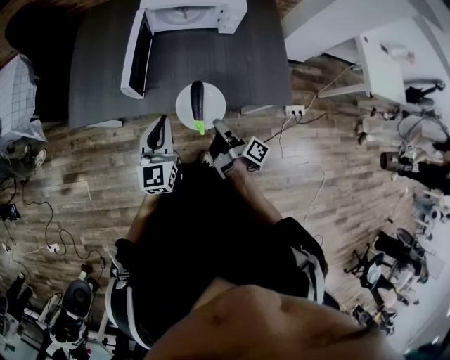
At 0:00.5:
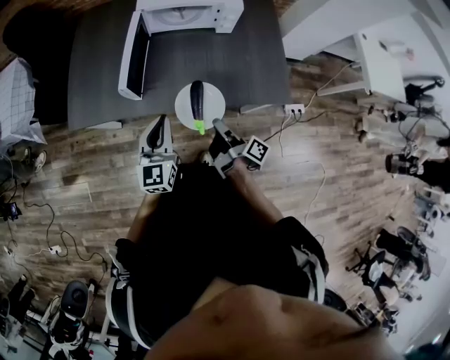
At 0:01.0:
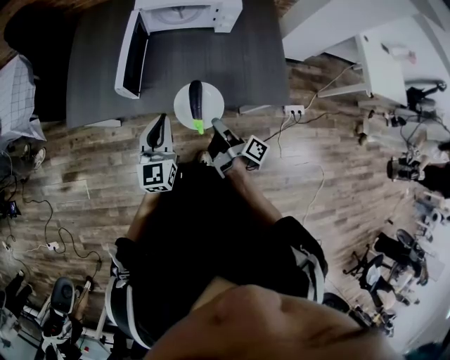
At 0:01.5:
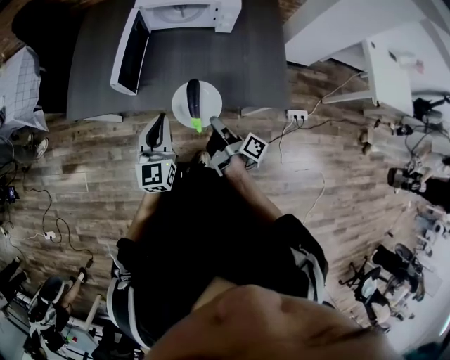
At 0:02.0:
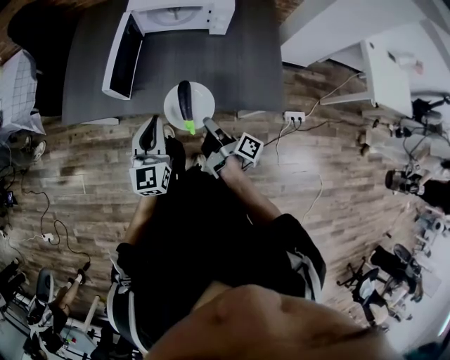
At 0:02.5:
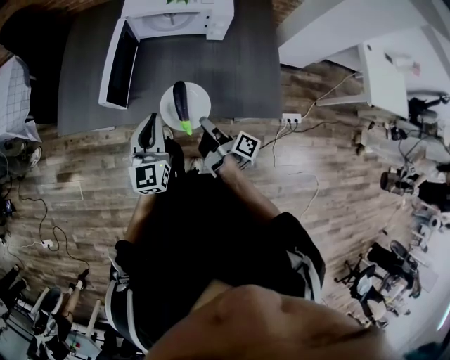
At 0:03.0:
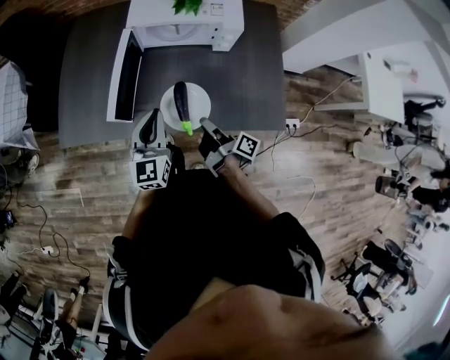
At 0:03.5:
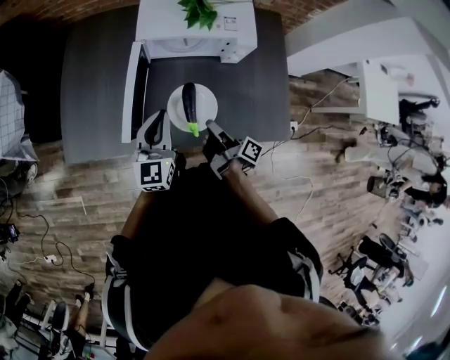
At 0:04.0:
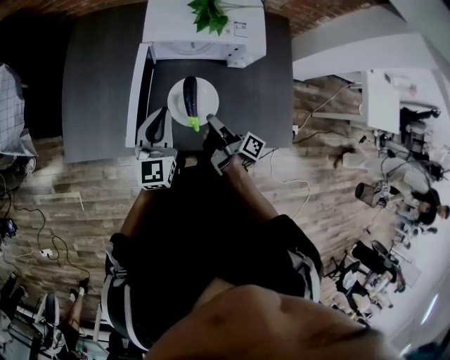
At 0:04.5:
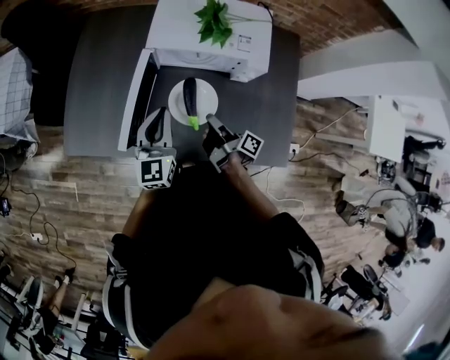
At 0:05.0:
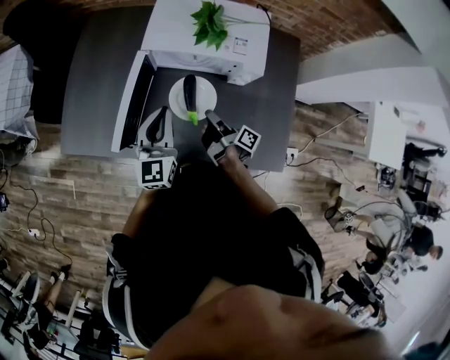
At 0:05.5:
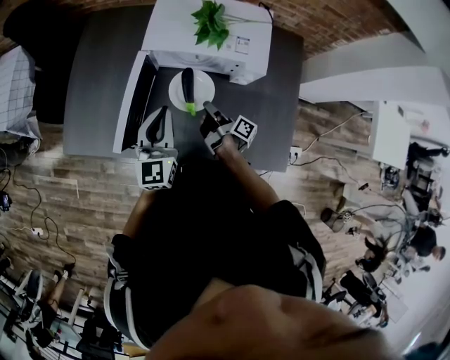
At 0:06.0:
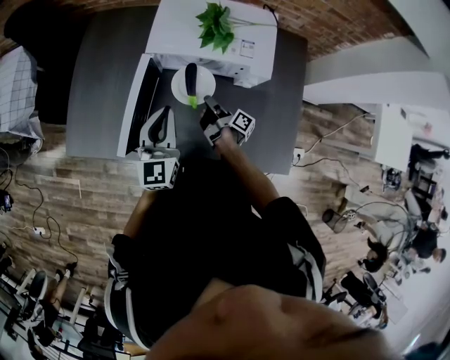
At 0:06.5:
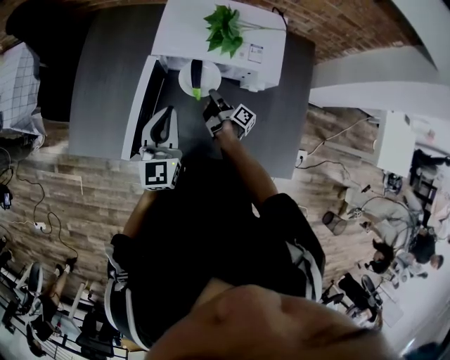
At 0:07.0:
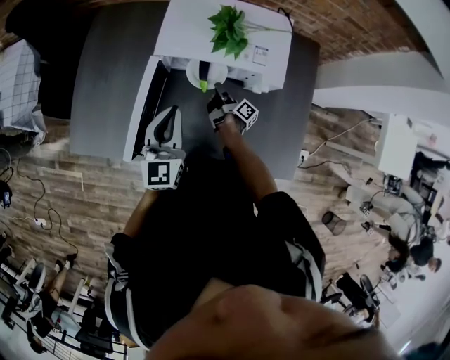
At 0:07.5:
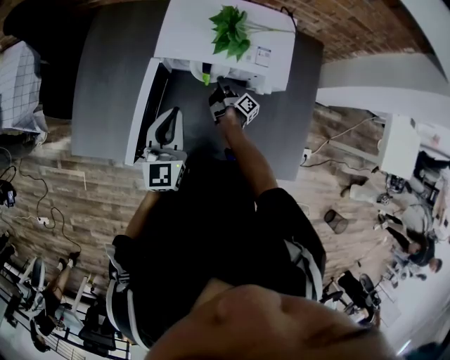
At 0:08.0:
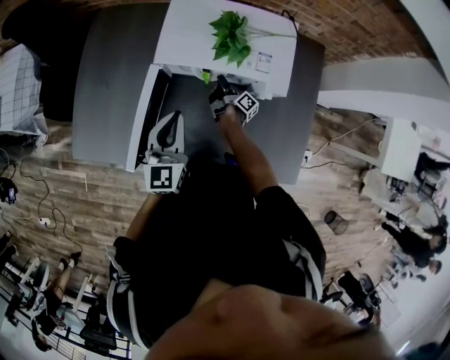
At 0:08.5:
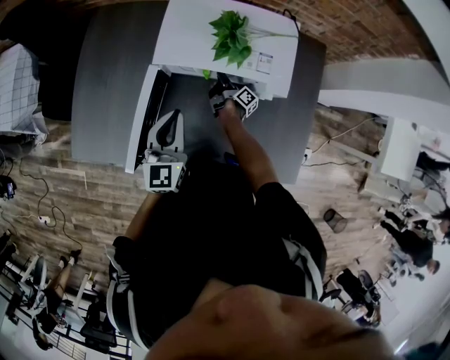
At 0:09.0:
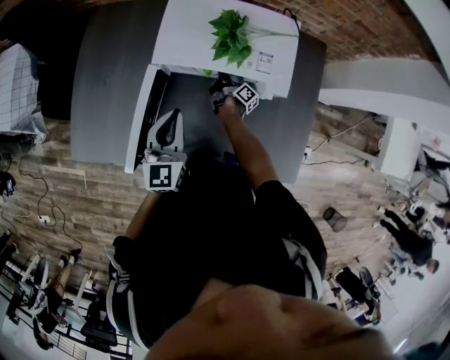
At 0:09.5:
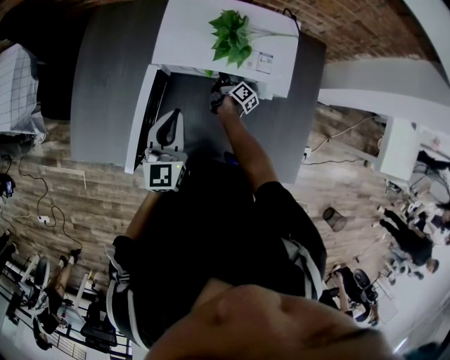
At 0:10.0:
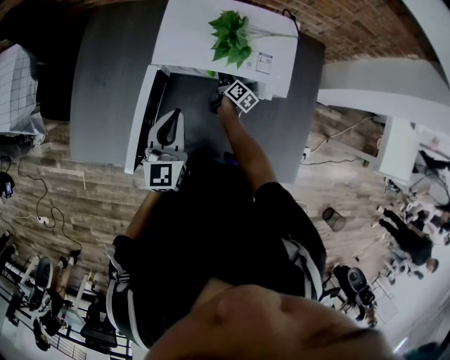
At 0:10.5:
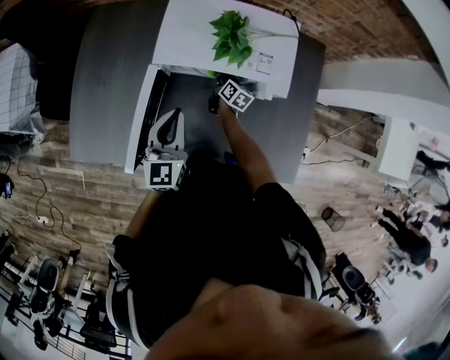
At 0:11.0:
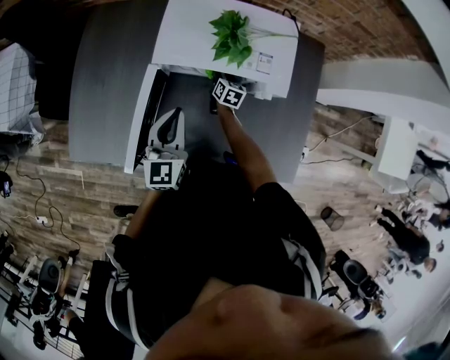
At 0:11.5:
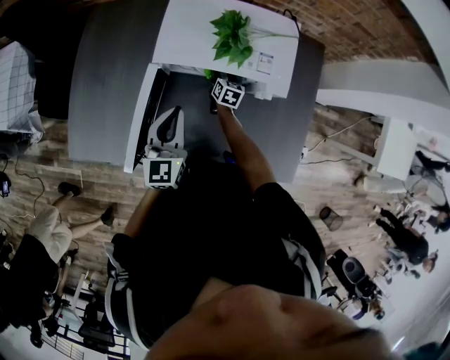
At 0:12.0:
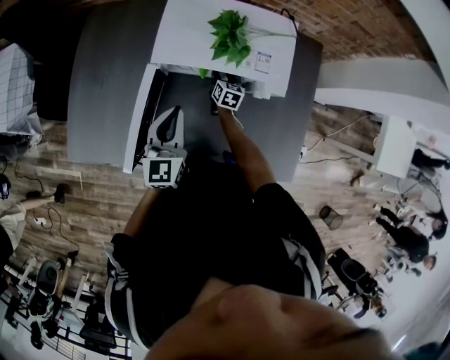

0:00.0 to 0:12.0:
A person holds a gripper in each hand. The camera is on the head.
0:00.0 to 0:02.0: The grippers both shift to the right by approximately 5 cm.
0:02.0 to 0:04.0: Both grippers move forward, about 25 cm.
0:04.0 to 0:06.0: The left gripper shifts by roughly 5 cm. Meanwhile the right gripper goes roughly 15 cm forward and downward.
0:06.0 to 0:08.0: The right gripper moves forward and downward, approximately 15 cm, while the left gripper travels forward by about 5 cm.
0:08.0 to 0:10.0: The right gripper turns by approximately 30 degrees.
0:10.0 to 0:12.0: The right gripper changes its angle by some 40 degrees, and opens up.

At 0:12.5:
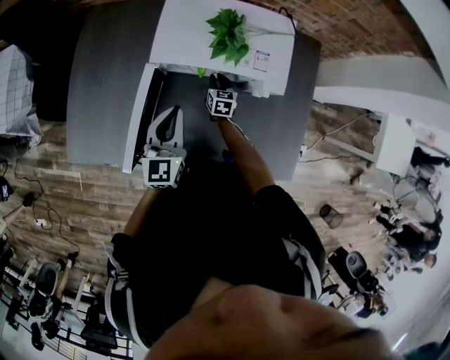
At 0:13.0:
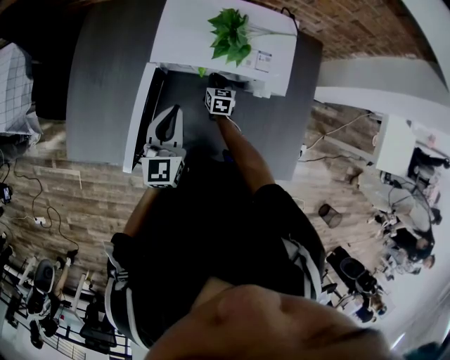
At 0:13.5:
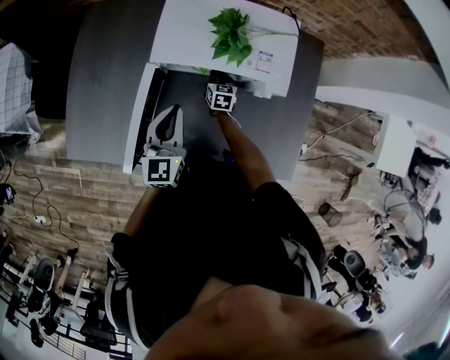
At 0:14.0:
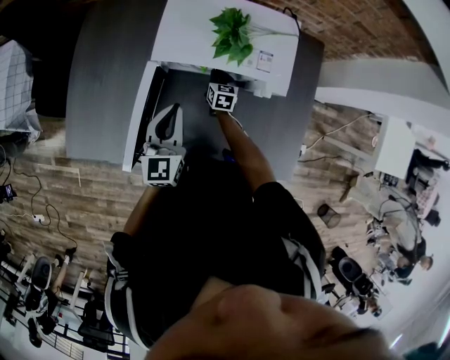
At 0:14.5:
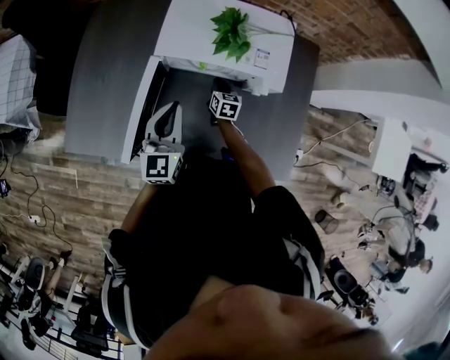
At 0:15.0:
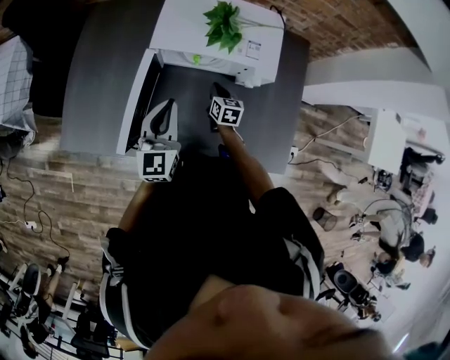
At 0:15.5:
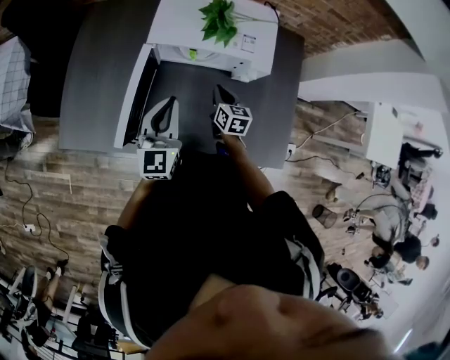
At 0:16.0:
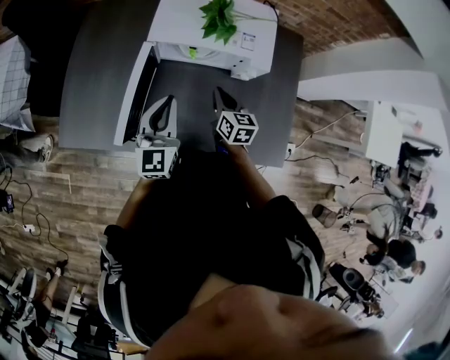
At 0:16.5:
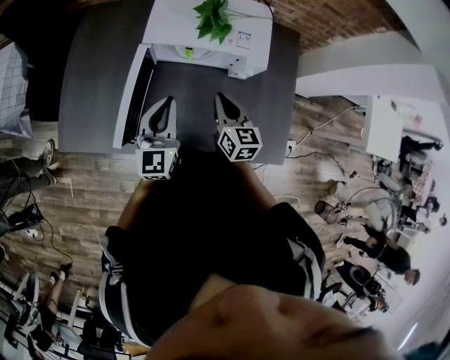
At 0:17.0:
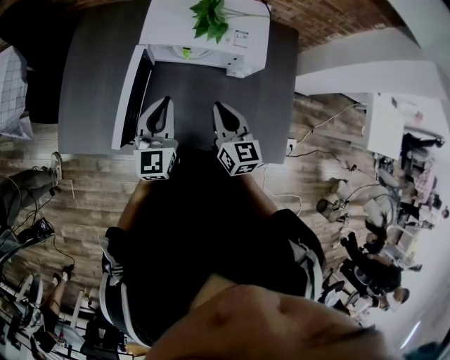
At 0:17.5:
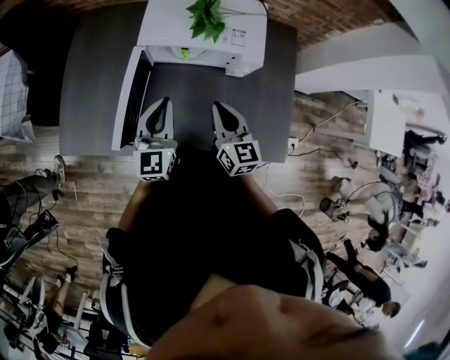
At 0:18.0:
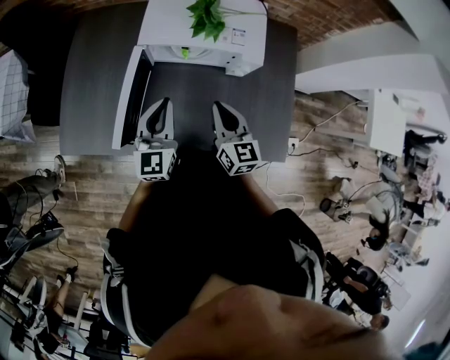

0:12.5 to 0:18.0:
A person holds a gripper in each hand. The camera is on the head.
0:12.5 to 0:14.5: The grippers move only a little.
0:14.5 to 0:16.0: The left gripper moves backward, some 5 cm. Meanwhile the right gripper is displaced upward and backward by approximately 20 cm.
0:16.0 to 0:18.0: The right gripper moves upward and backward, roughly 10 cm.

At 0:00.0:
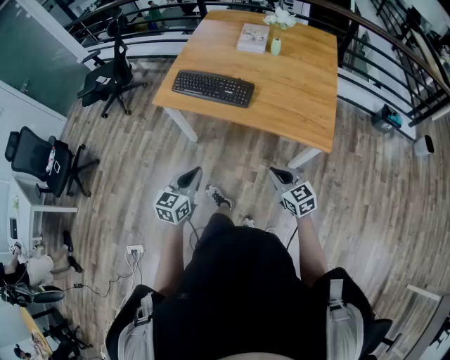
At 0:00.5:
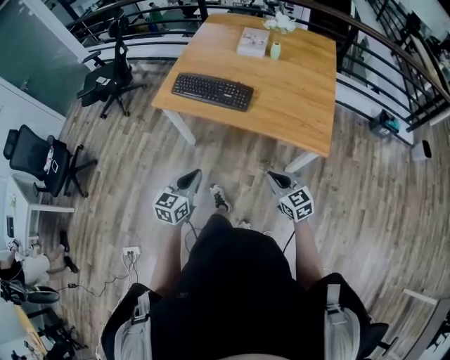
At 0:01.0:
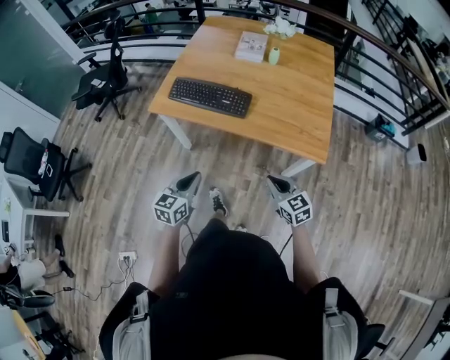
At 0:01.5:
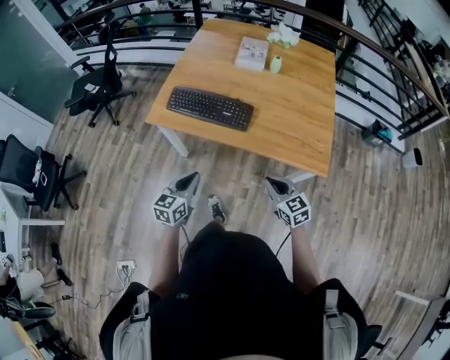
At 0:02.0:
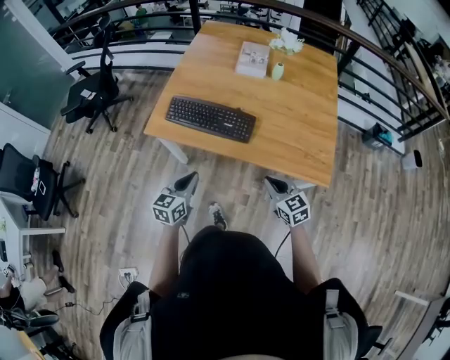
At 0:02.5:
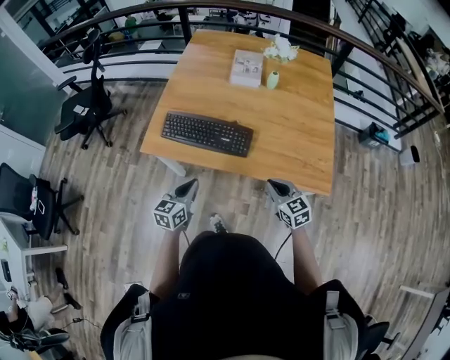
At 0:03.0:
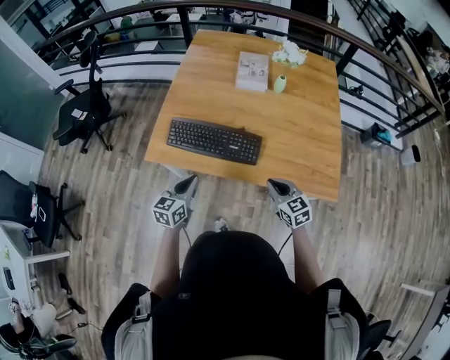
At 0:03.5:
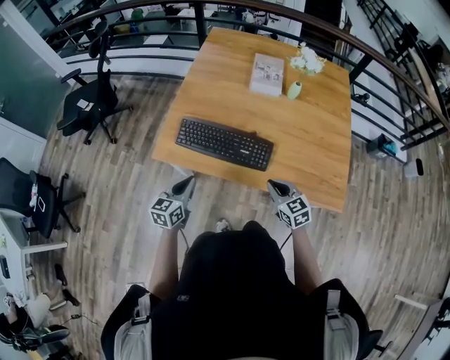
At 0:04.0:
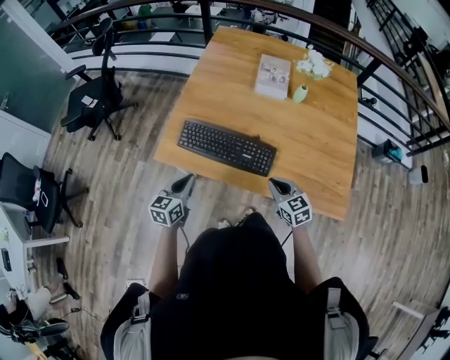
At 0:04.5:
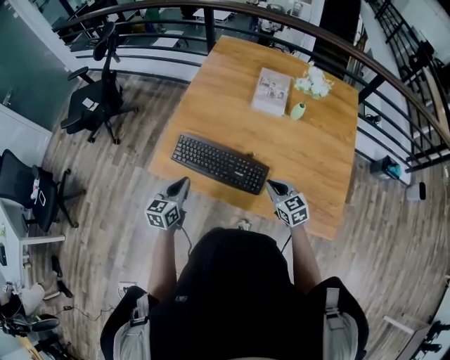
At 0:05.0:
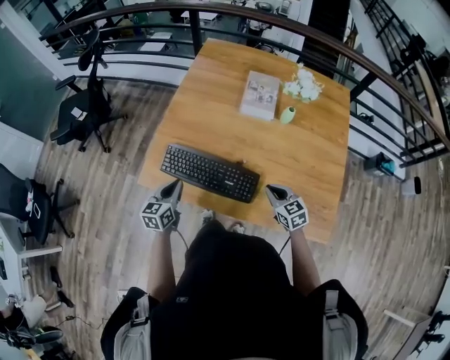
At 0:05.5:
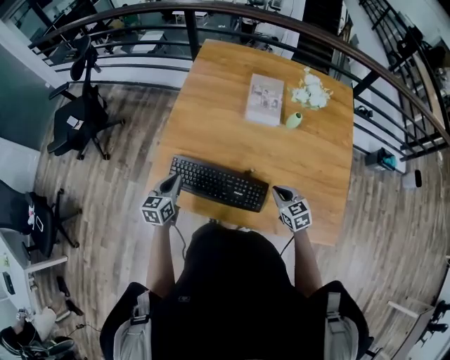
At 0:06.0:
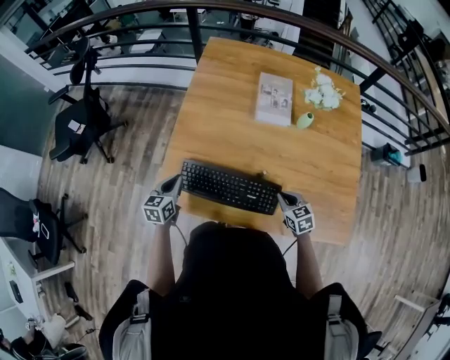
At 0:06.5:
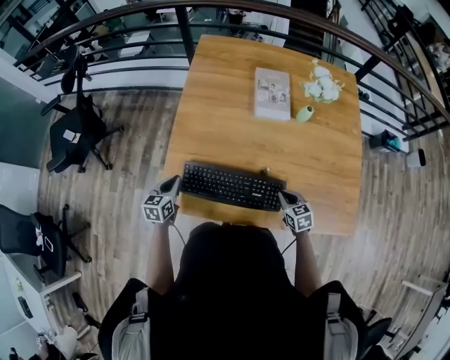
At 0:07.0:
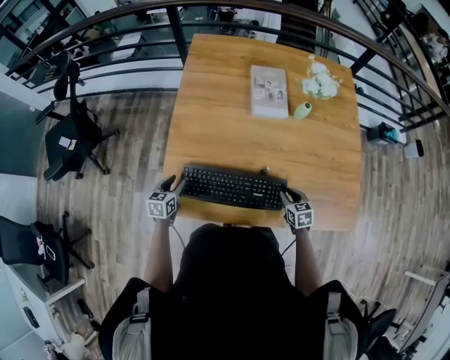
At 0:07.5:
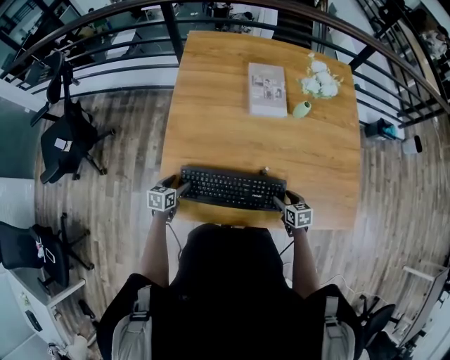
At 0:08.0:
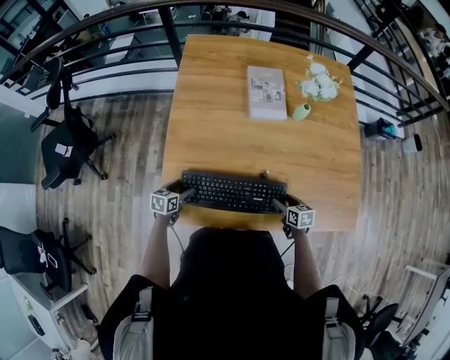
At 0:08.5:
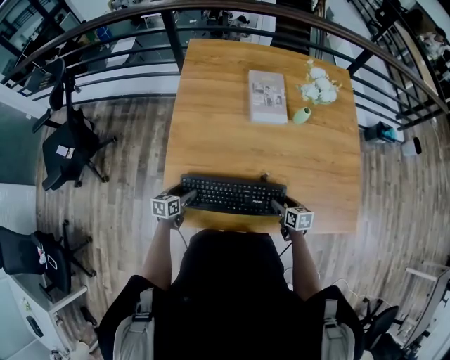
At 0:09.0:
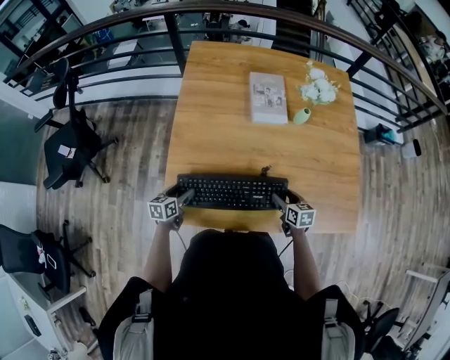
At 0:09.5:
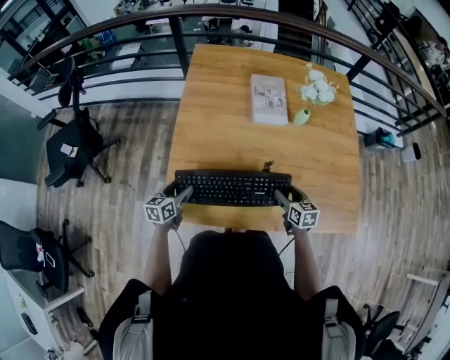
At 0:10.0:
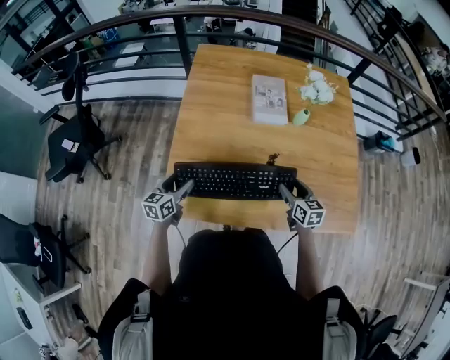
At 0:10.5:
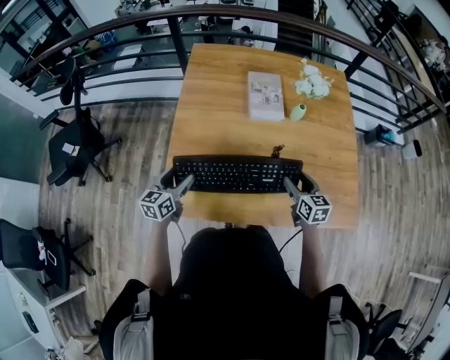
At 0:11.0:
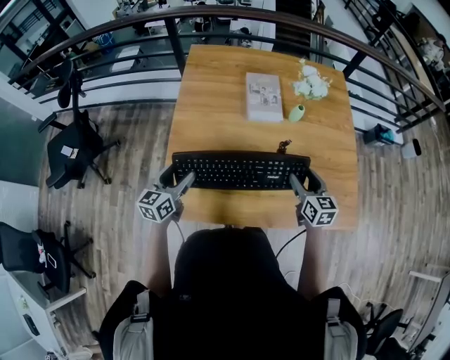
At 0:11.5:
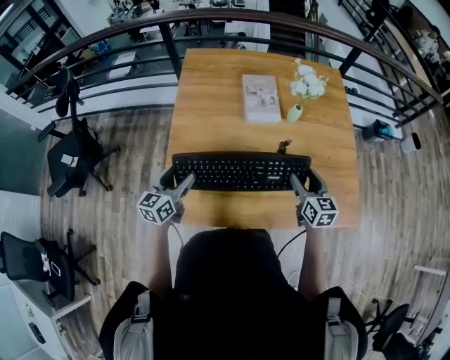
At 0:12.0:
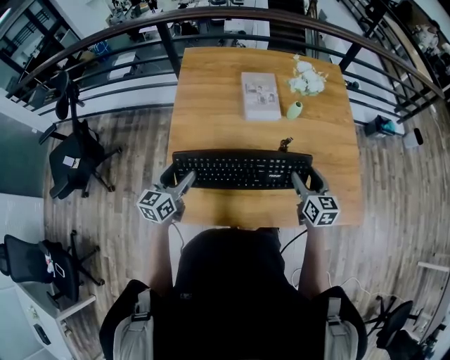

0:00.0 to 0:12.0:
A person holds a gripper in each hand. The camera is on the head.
0:00.0 to 0:02.0: Both grippers travel together forward, some 15 cm.
0:02.0 to 0:04.0: The left gripper shifts some 20 cm forward and to the left. Meanwhile the right gripper shifts about 20 cm forward.
0:04.0 to 0:06.0: The right gripper heads forward and downward, covering approximately 15 cm. The left gripper goes roughly 20 cm forward.
0:06.0 to 0:08.0: The left gripper moves downward, some 15 cm, turns by roughly 30 degrees, and opens up. The right gripper moves downward, about 10 cm, changes its angle by approximately 30 degrees, and opens.
0:08.0 to 0:10.0: The two grippers go about 15 cm upward. The right gripper rotates roughly 20 degrees. Meanwhile the left gripper changes its angle by about 20 degrees.
0:10.0 to 0:12.0: Both grippers move upward, some 10 cm.
